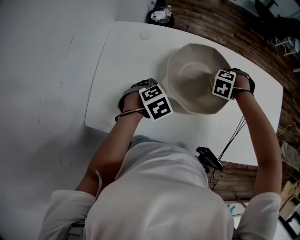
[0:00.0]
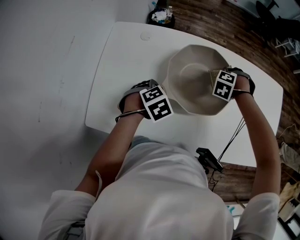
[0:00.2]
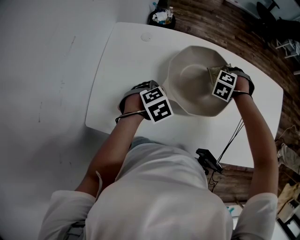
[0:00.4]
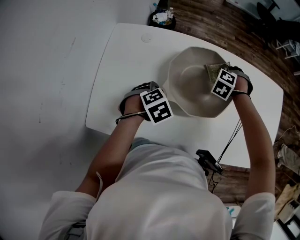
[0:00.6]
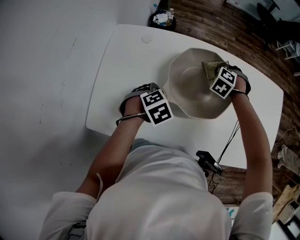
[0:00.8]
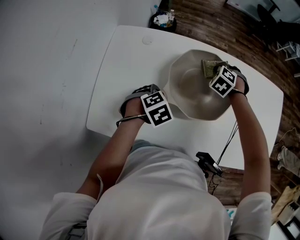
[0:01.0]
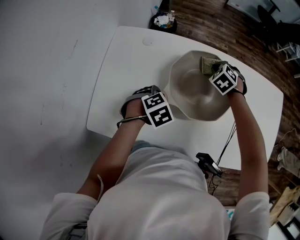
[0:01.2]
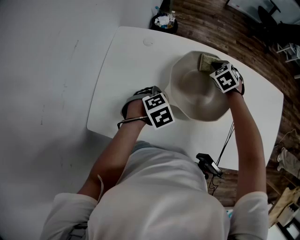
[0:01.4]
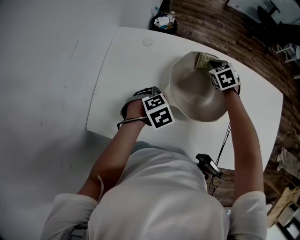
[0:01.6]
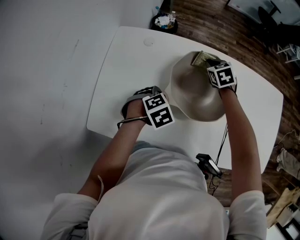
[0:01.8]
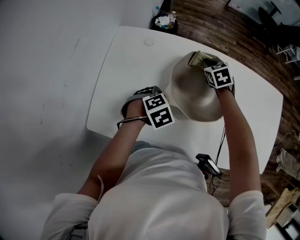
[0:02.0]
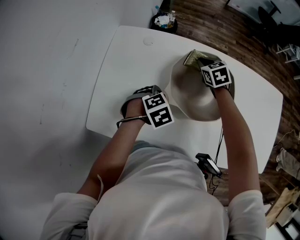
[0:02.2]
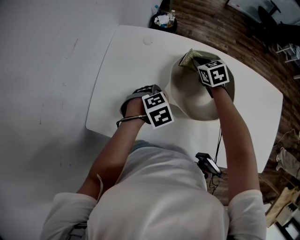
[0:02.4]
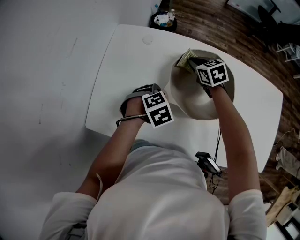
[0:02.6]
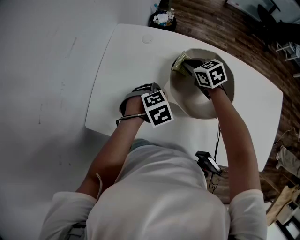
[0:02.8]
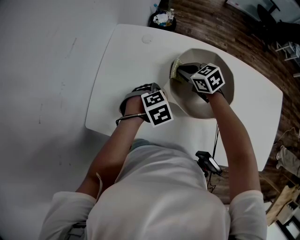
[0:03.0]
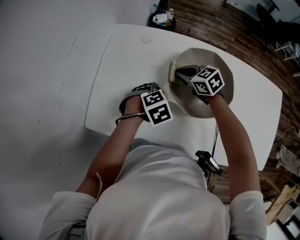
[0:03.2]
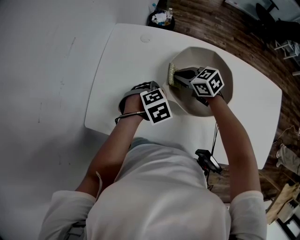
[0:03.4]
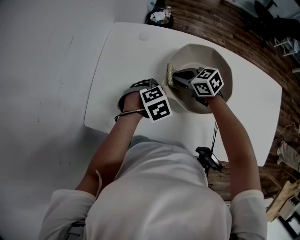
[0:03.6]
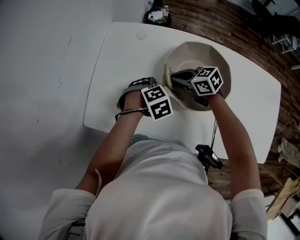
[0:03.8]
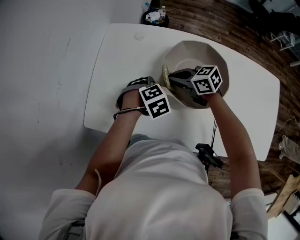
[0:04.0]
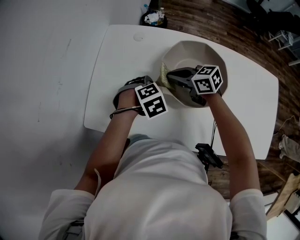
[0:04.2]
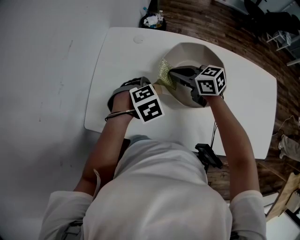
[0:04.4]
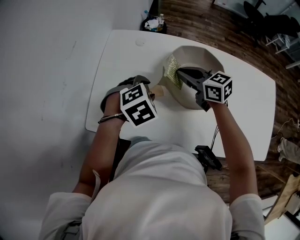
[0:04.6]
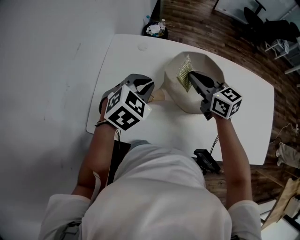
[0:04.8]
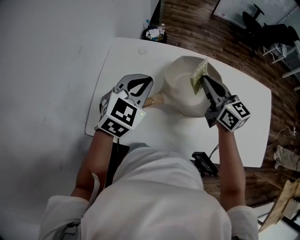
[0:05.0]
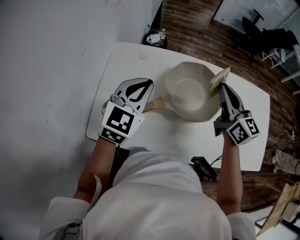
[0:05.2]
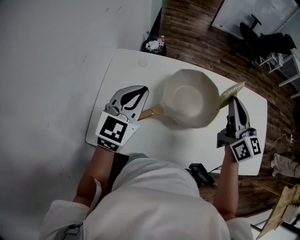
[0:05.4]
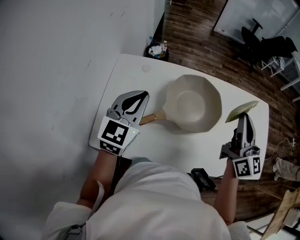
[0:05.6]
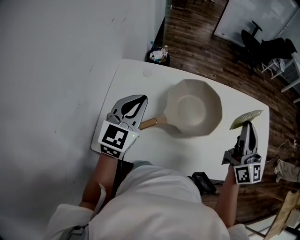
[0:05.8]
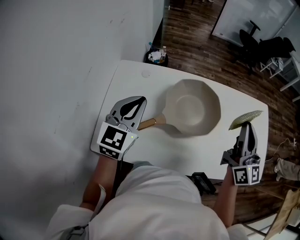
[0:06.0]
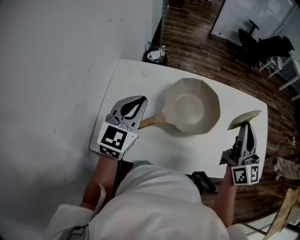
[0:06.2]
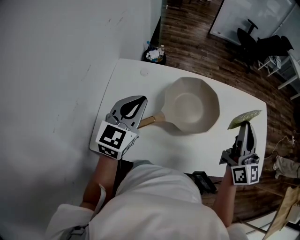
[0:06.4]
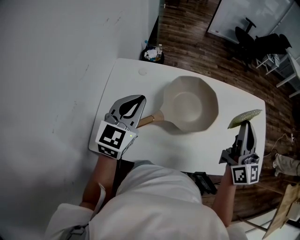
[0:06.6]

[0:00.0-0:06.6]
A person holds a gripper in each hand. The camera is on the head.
0:00.0 to 0:01.6: The right gripper changes place by approximately 15 cm, and swivels approximately 60 degrees.
0:01.6 to 0:03.2: The right gripper shifts by approximately 15 cm, and turns by about 40 degrees.
0:03.2 to 0:05.0: Both grippers travel together upward, approximately 20 cm. The left gripper tips its fingers upward by about 50 degrees, and closes up. The right gripper rotates roughly 40 degrees.
0:05.0 to 0:06.6: The right gripper travels to the right, upward and backward by some 20 cm, and changes its angle by some 40 degrees. Meanwhile the left gripper shifts by approximately 5 cm, and swivels roughly 20 degrees.

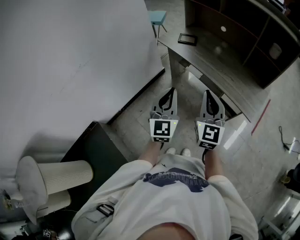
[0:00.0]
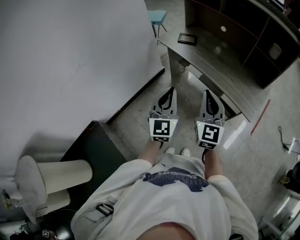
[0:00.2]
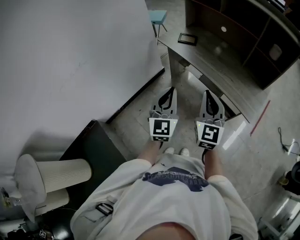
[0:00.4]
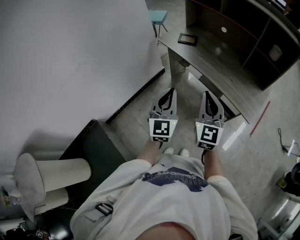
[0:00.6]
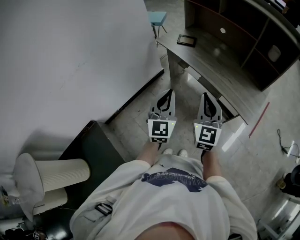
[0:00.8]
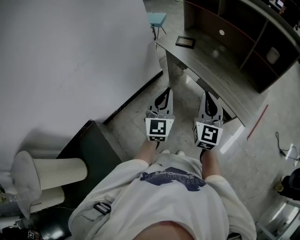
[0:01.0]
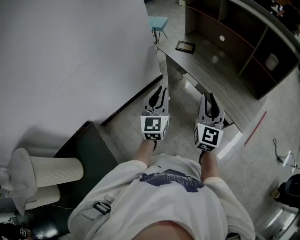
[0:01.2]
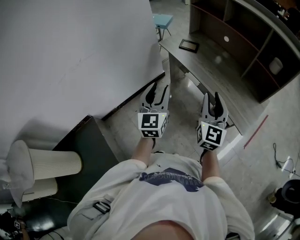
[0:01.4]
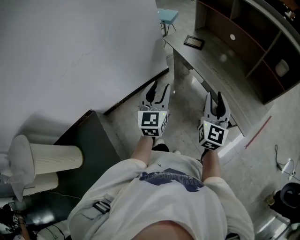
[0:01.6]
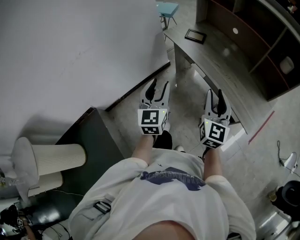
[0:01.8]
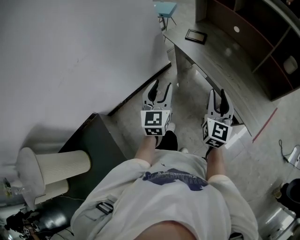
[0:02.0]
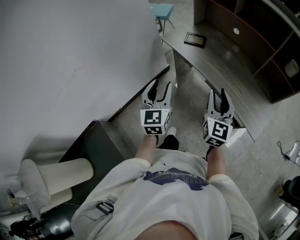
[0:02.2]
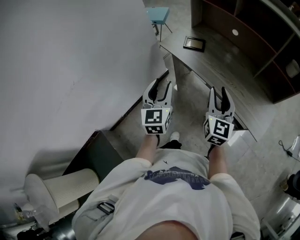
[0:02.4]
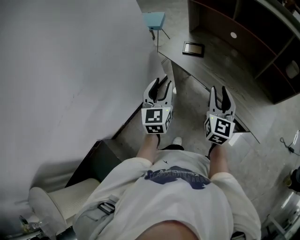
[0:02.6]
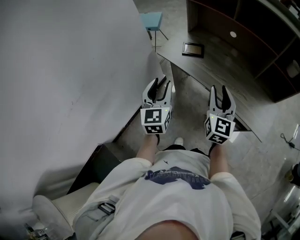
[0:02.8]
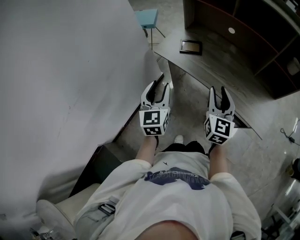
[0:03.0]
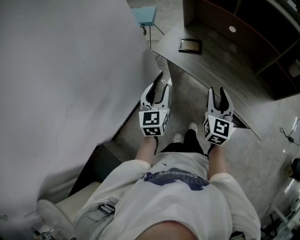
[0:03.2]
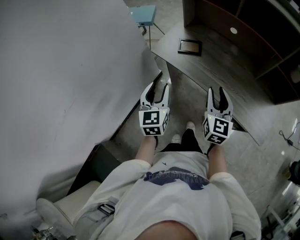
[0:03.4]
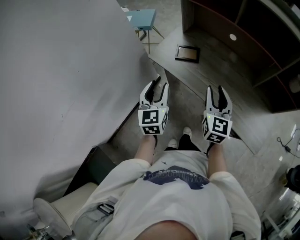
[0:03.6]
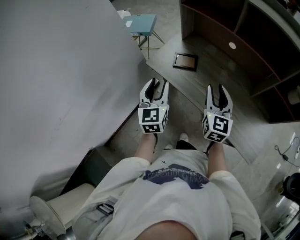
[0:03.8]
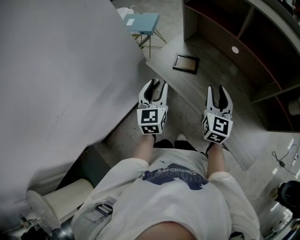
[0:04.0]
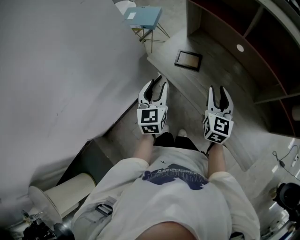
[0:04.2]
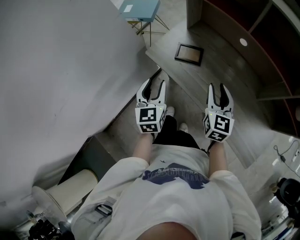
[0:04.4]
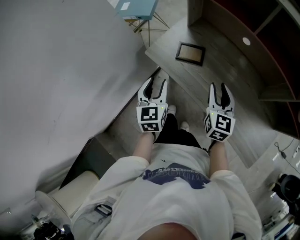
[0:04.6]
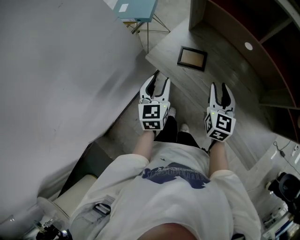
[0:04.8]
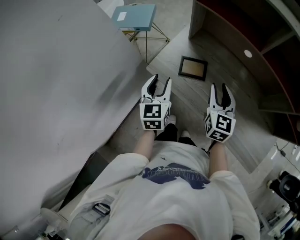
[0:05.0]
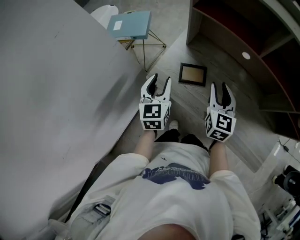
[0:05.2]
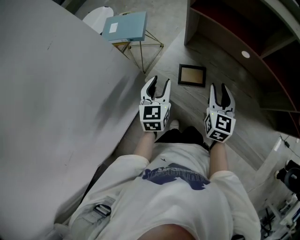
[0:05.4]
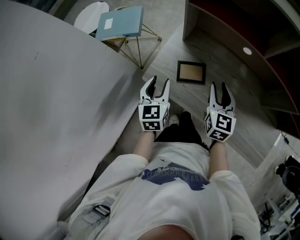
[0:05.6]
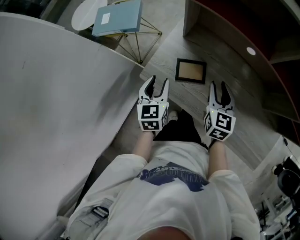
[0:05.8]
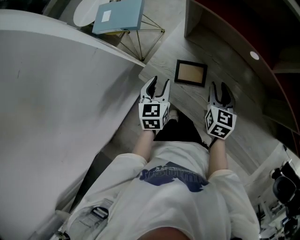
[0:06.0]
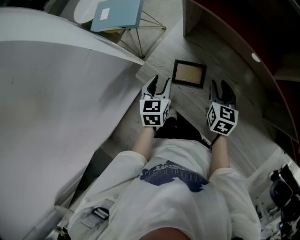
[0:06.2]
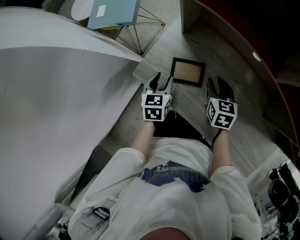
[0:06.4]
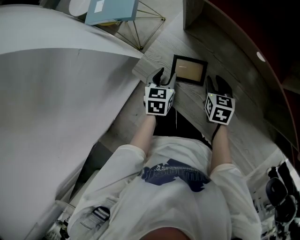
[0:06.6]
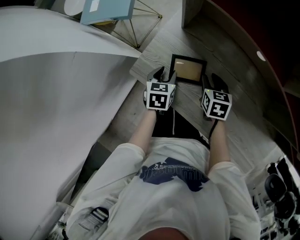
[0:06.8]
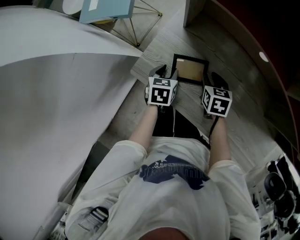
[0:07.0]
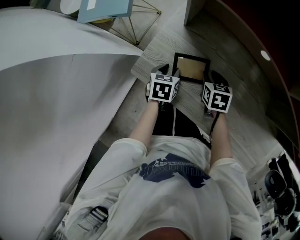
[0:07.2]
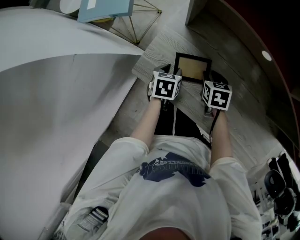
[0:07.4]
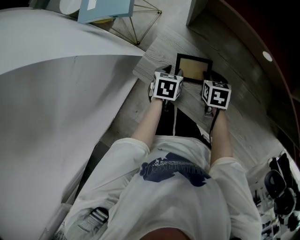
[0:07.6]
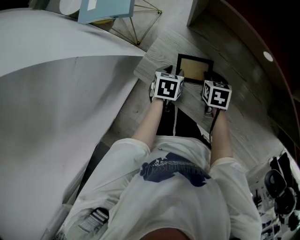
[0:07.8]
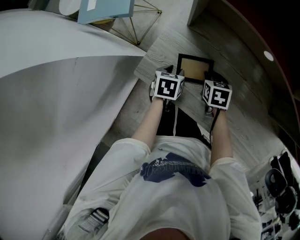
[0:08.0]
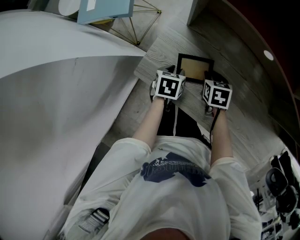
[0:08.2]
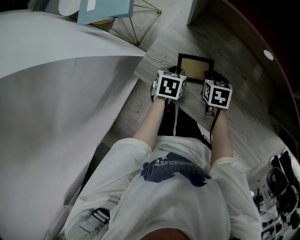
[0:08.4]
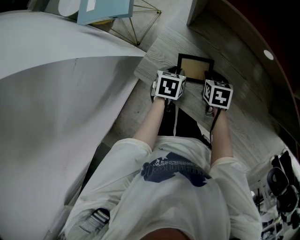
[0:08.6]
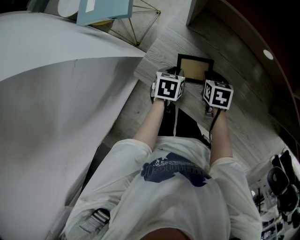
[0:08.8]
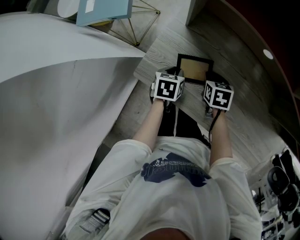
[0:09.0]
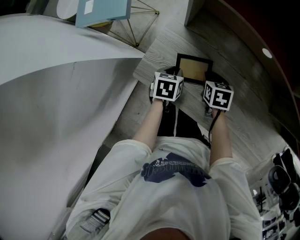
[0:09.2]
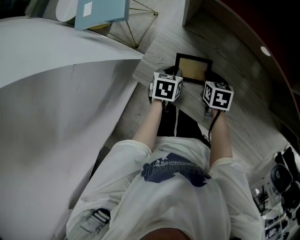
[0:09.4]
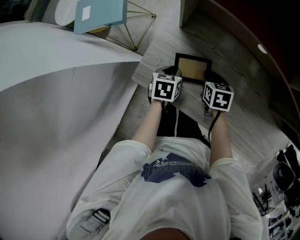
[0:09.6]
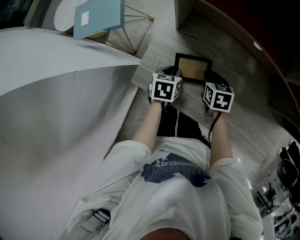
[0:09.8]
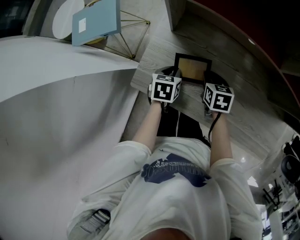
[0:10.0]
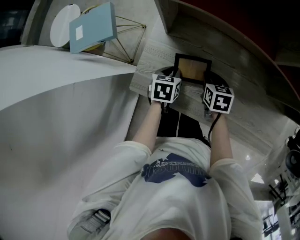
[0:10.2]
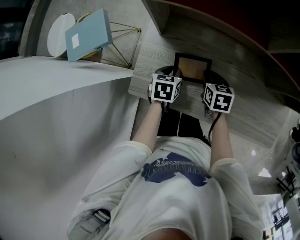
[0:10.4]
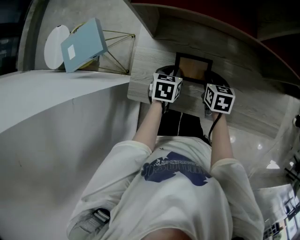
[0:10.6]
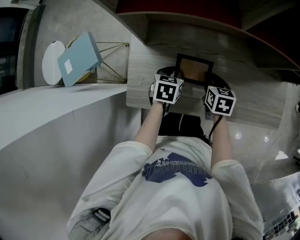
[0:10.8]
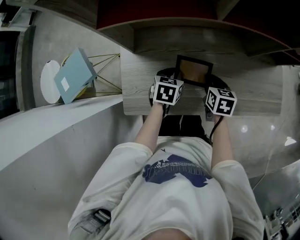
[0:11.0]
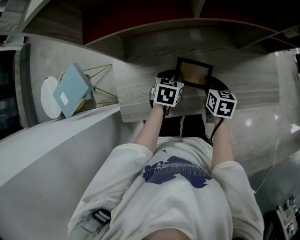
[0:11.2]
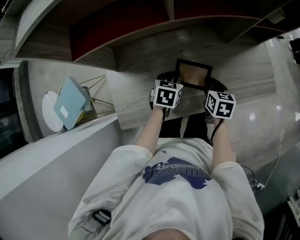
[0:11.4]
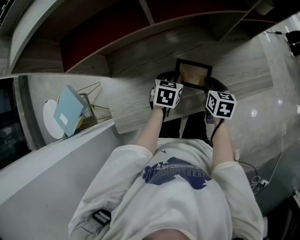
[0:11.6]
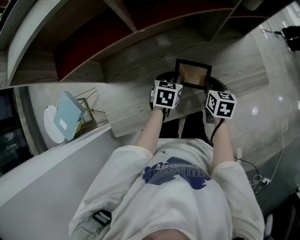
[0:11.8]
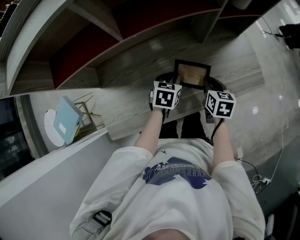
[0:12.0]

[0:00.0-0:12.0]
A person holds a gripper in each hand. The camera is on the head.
0:00.0 to 0:01.6: The right gripper is displaced to the right by about 5 cm, and opens, while the left gripper opens its fingers.
0:01.6 to 0:03.0: Both grippers move forward and to the left, about 25 cm.
0:03.0 to 0:04.4: Both grippers travel together forward, roughly 20 cm.
0:04.4 to 0:06.0: The two grippers go approximately 20 cm forward and downward.
0:06.0 to 0:07.6: Both grippers move downward, about 15 cm. The right gripper tilts its fingers roughly 30 degrees downward. The left gripper rotates approximately 30 degrees.
0:07.6 to 0:09.0: The two grippers keep their place.
0:09.0 to 0:10.4: The left gripper shifts by approximately 5 cm; the right gripper is displaced to the right and upward by approximately 10 cm.
0:10.4 to 0:12.0: The right gripper moves approximately 35 cm, and turns by roughly 40 degrees. The left gripper changes place by about 30 cm, and rotates approximately 40 degrees.

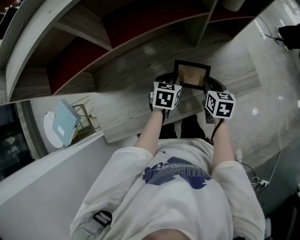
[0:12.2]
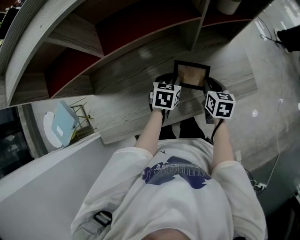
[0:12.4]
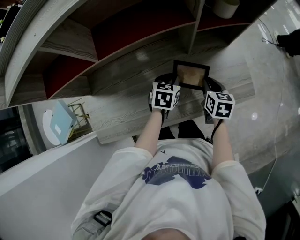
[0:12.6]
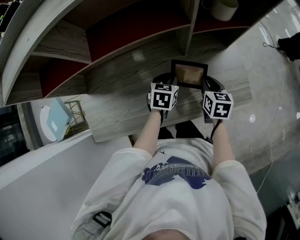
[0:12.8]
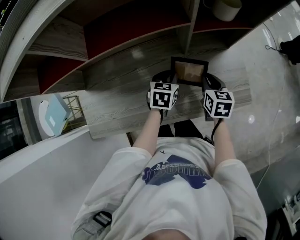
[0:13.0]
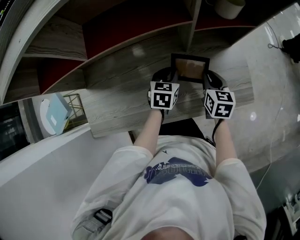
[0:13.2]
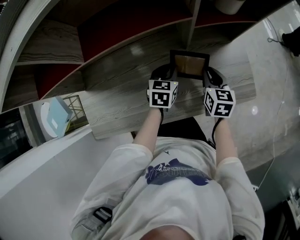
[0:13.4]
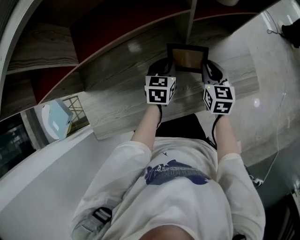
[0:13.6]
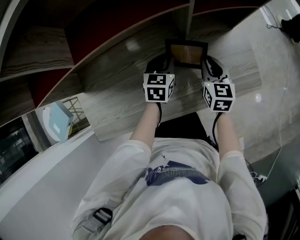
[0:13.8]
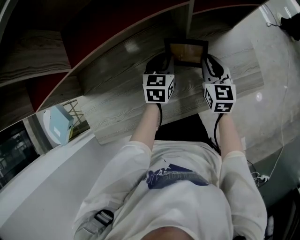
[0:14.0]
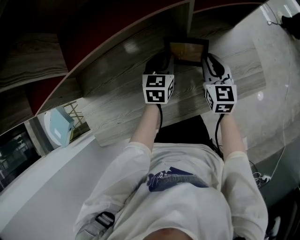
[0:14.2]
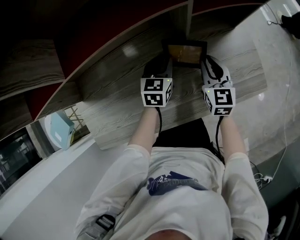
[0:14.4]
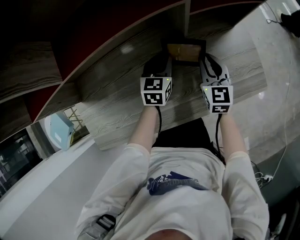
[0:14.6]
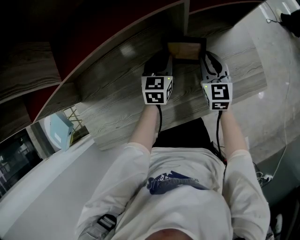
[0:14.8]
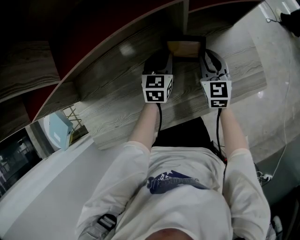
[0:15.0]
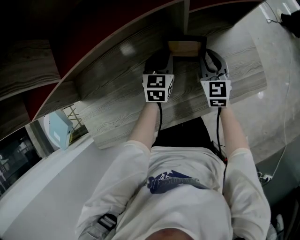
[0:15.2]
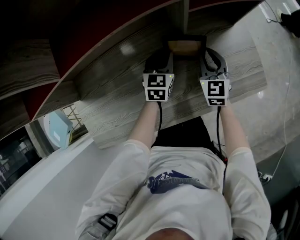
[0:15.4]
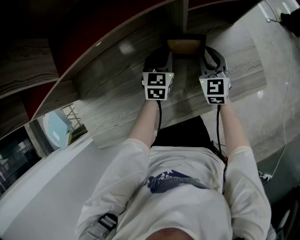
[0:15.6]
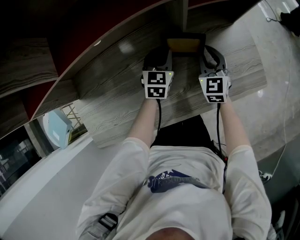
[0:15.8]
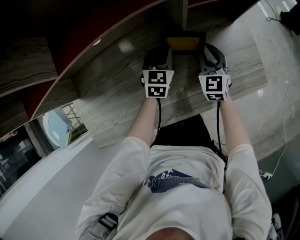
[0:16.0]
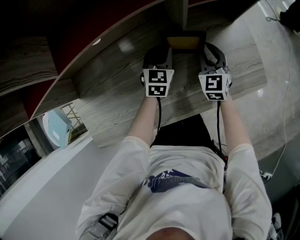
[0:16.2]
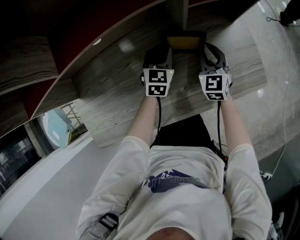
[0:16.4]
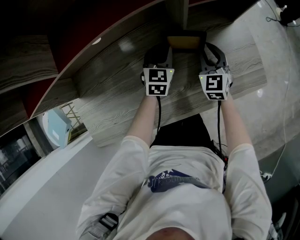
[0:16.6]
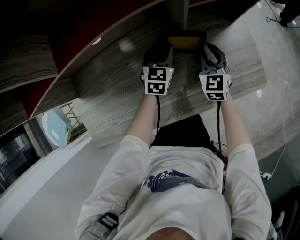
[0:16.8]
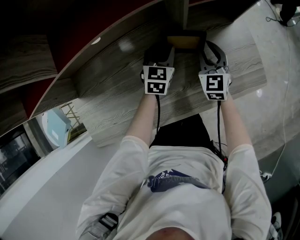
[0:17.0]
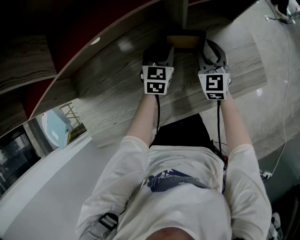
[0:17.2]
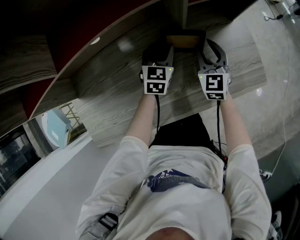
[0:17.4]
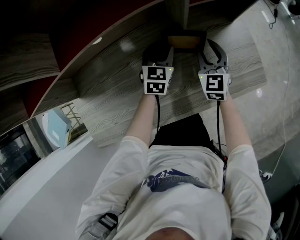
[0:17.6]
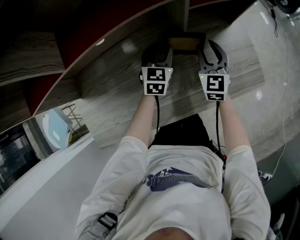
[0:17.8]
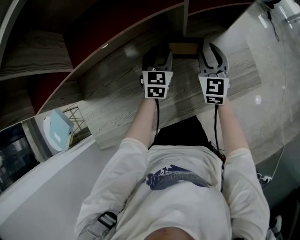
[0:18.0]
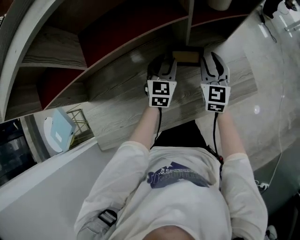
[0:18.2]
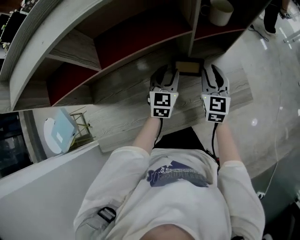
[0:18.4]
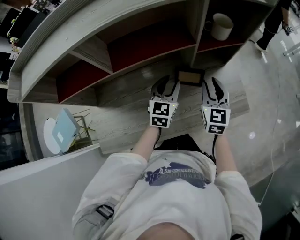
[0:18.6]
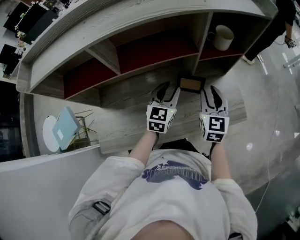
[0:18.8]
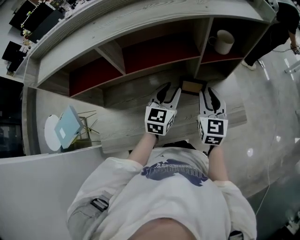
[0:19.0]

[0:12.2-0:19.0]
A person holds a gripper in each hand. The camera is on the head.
0:12.2 to 0:13.6: The grippers both shift forward by some 10 cm.
0:13.6 to 0:15.0: The right gripper shifts by approximately 5 cm. The left gripper moves some 5 cm.
0:15.0 to 0:17.6: There are only small adjustments of the grippers.
0:17.6 to 0:19.0: The two grippers go about 25 cm upward.
